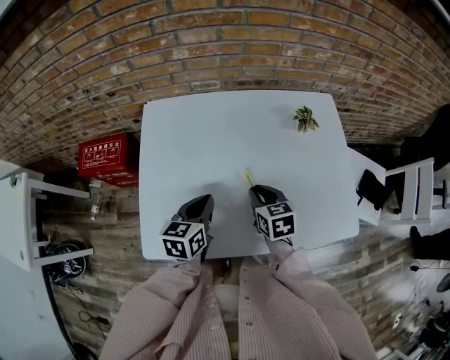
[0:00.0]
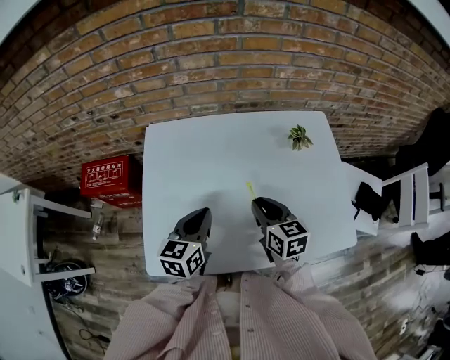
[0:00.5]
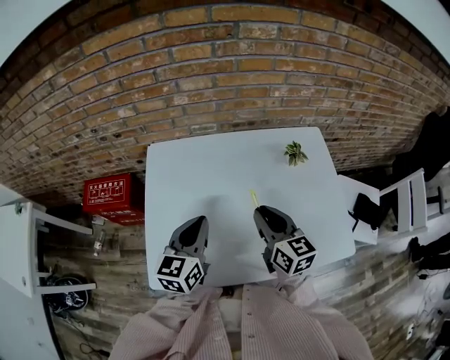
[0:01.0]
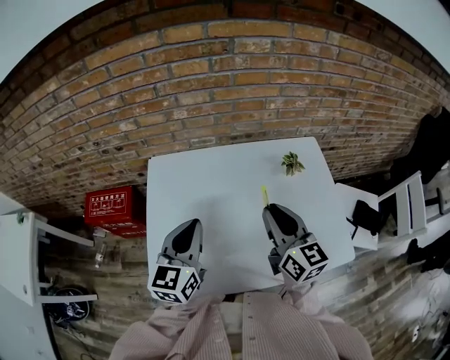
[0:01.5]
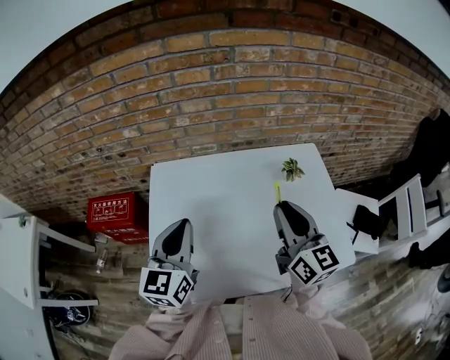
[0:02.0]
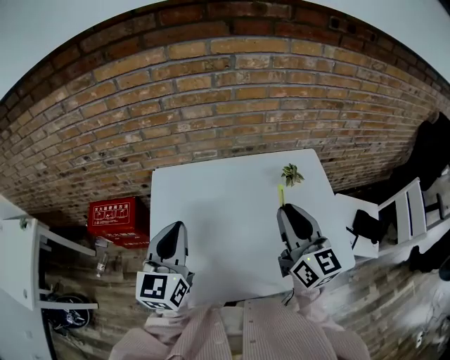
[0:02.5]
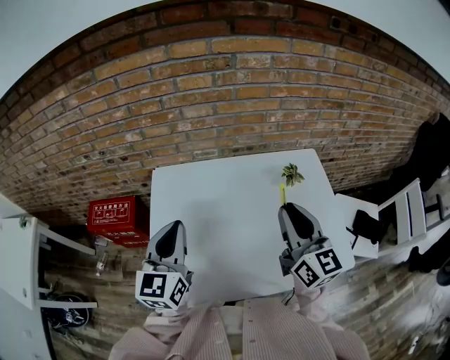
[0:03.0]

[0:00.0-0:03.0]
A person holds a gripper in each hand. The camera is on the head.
0:00.0 to 0:01.5: The two grippers go some 20 cm upward. The left gripper changes its angle by approximately 30 degrees, while the right gripper angles its fingers upward, by some 40 degrees.
0:01.5 to 0:03.0: The right gripper is displaced upward by approximately 5 cm. Meanwhile the left gripper changes place by some 5 cm.

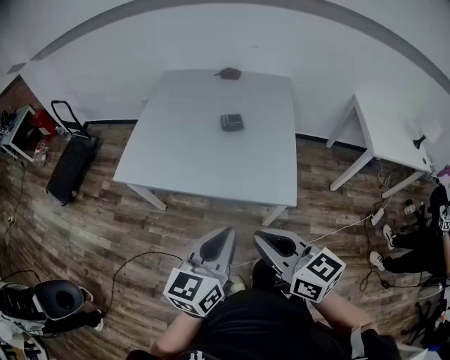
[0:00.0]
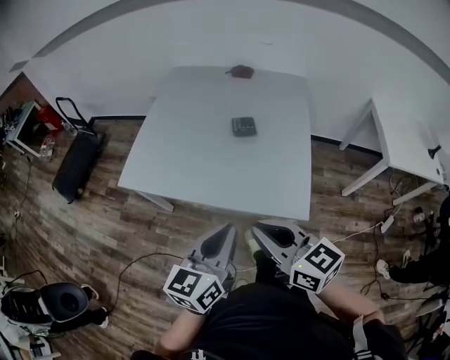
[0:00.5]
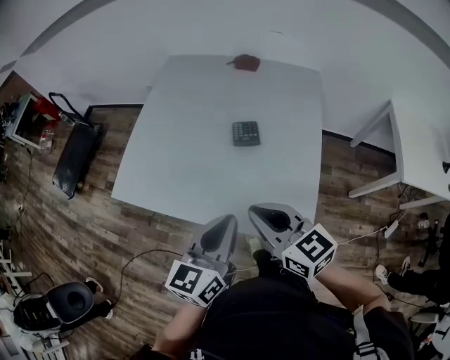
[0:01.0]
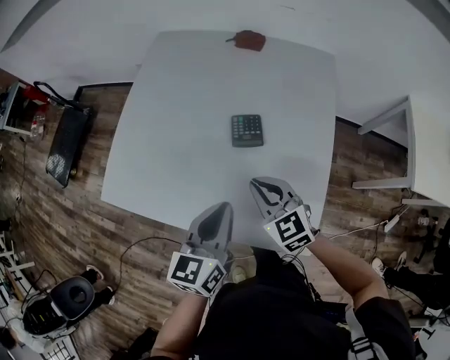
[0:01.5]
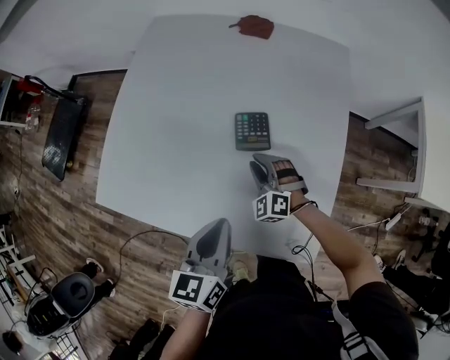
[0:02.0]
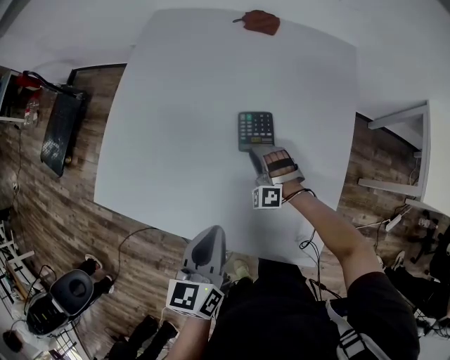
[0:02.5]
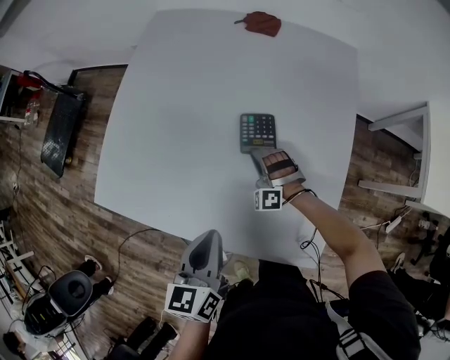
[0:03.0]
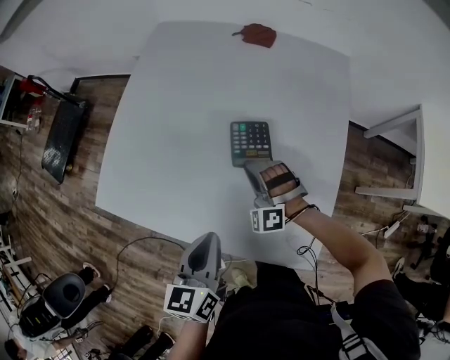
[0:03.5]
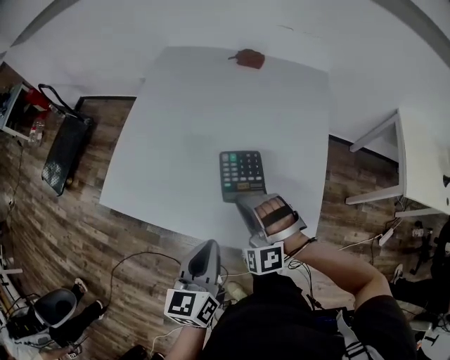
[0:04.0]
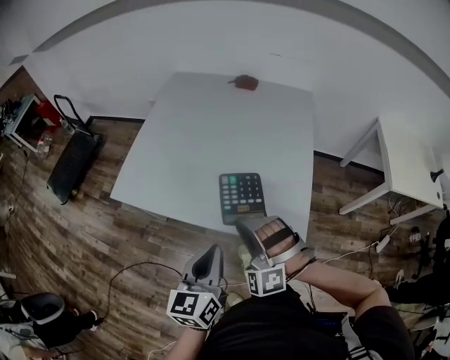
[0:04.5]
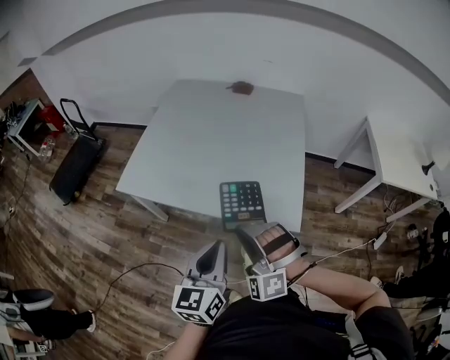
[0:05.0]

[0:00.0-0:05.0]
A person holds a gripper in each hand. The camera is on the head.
0:00.0 to 0:02.5: The right gripper shifts some 60 cm forward and downward, twists some 90 degrees counterclockwise, seen from behind, and opens up; the left gripper travels forward and downward by approximately 35 cm, and turns by some 30 degrees.
0:02.5 to 0:05.0: The right gripper shifts some 50 cm backward and upward. Meanwhile the left gripper travels backward by about 25 cm, and swivels roughly 20 degrees.

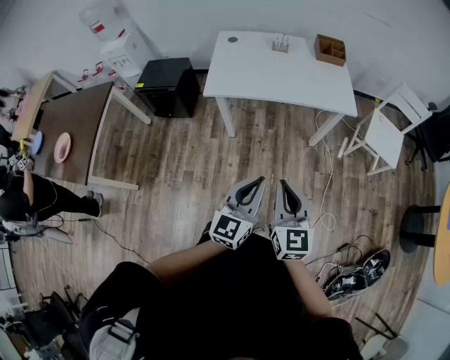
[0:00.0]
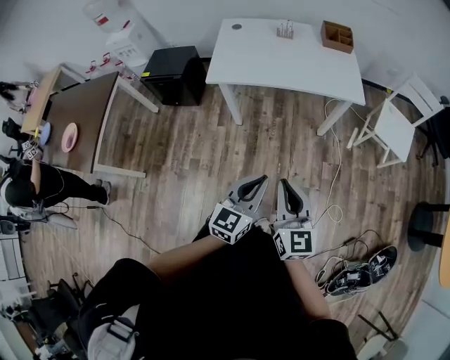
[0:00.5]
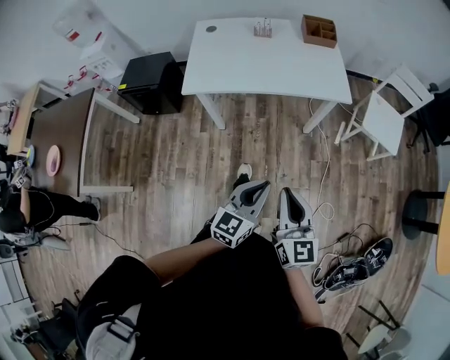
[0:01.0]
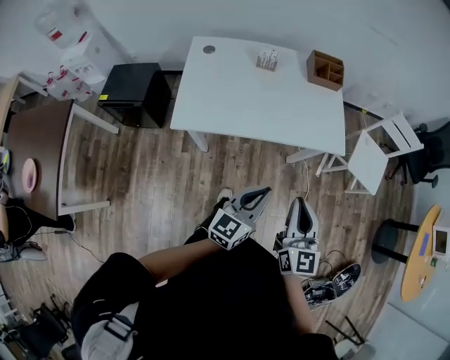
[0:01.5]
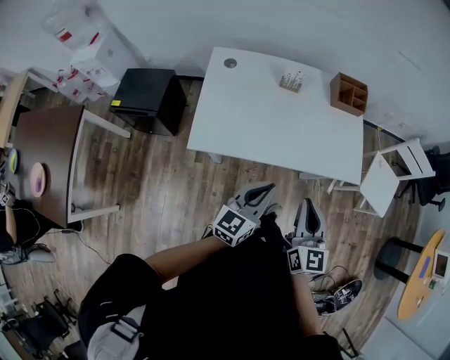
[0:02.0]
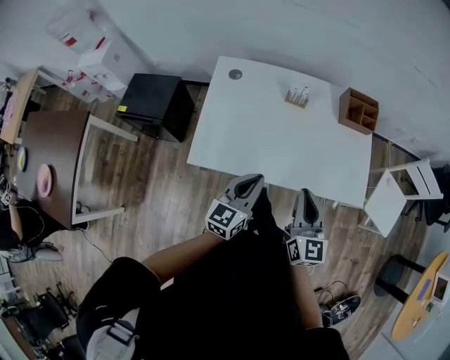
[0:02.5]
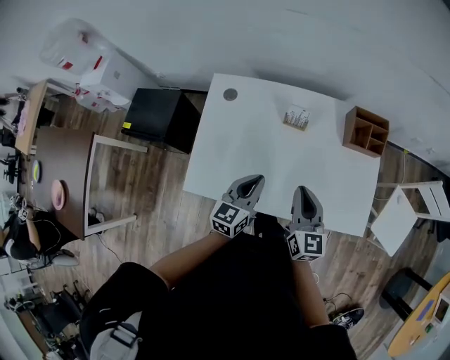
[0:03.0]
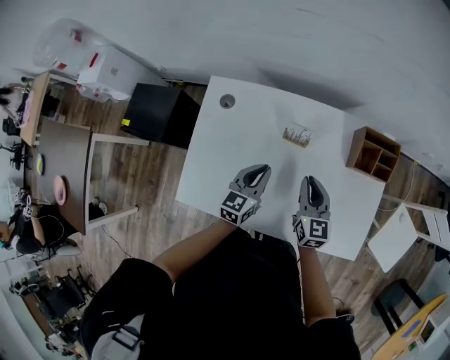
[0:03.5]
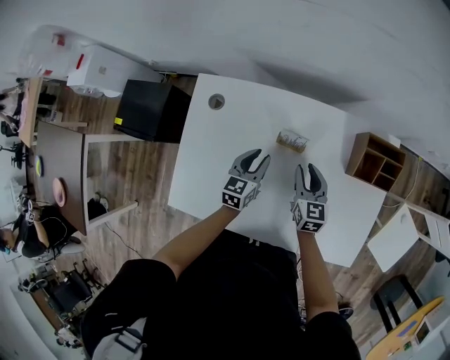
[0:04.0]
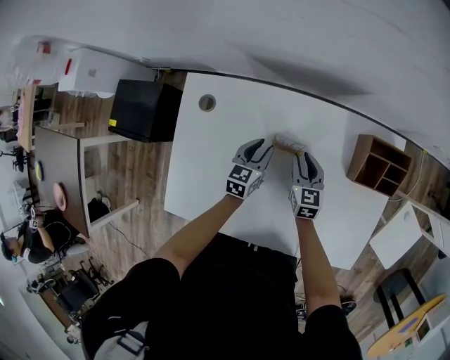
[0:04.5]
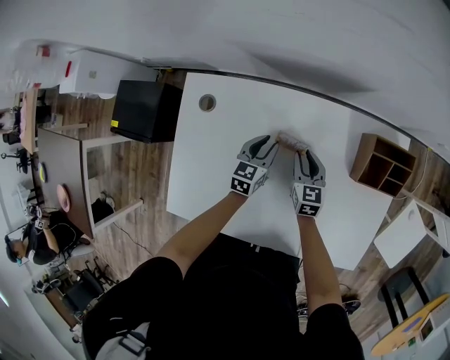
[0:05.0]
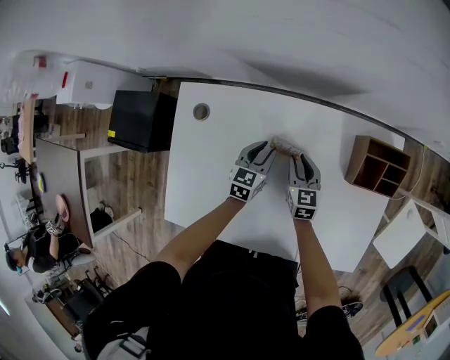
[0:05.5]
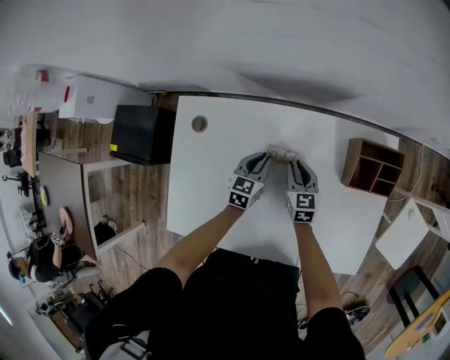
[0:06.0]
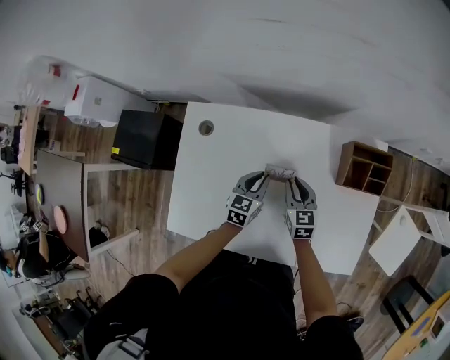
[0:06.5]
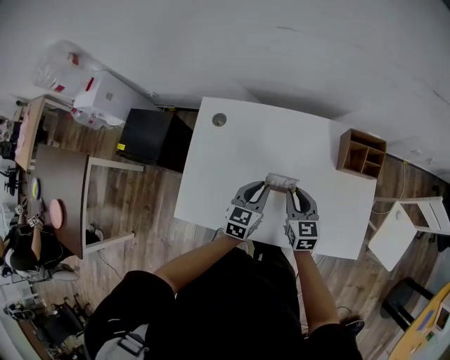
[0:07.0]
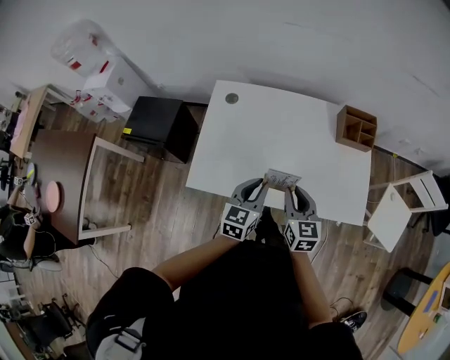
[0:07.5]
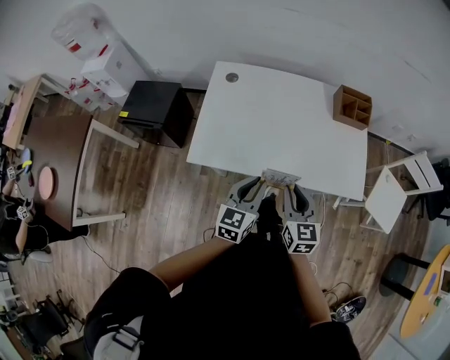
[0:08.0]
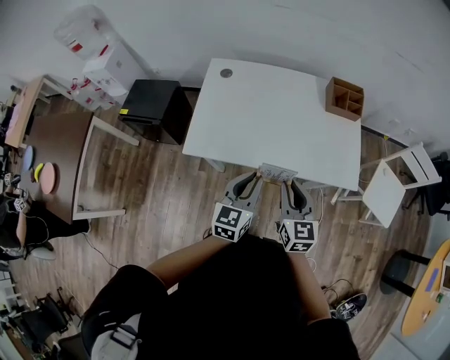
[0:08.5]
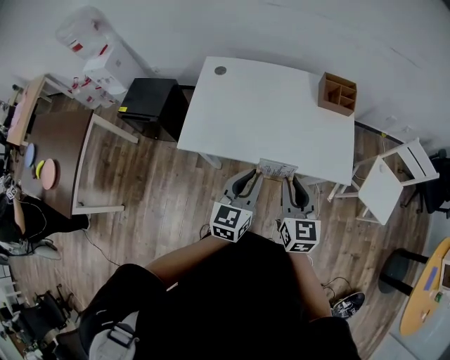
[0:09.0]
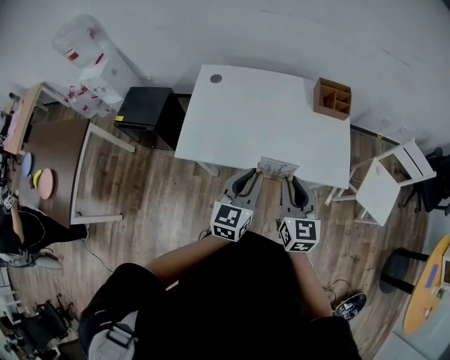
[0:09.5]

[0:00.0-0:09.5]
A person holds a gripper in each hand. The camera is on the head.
0:00.0 to 0:02.0: The grippers both shift forward by roughly 40 cm.
0:02.0 to 0:04.0: The two grippers travel together, forward, approximately 50 cm. Both grippers move downward, approximately 25 cm. The left gripper turns by approximately 30 degrees, and opens up; the right gripper turns by roughly 20 degrees.
0:04.0 to 0:05.5: The left gripper travels forward and downward by about 10 cm. Meanwhile the right gripper goes approximately 10 cm downward and forward.
0:05.5 to 0:07.5: The grippers both shift backward and upward by approximately 40 cm.
0:07.5 to 0:09.5: The two grippers go roughly 20 cm backward, upward and to the right.

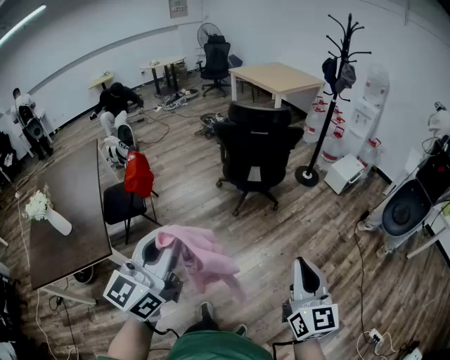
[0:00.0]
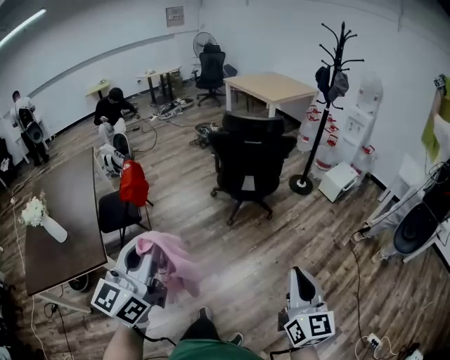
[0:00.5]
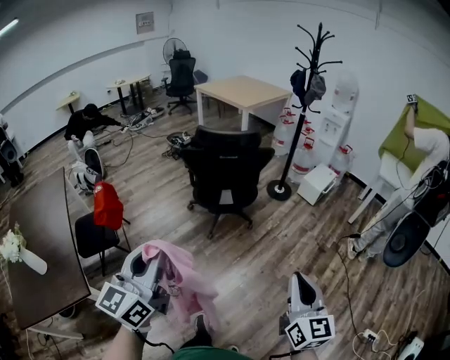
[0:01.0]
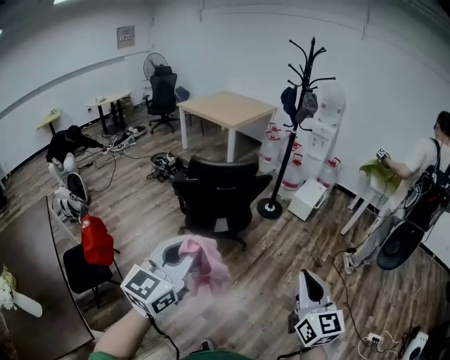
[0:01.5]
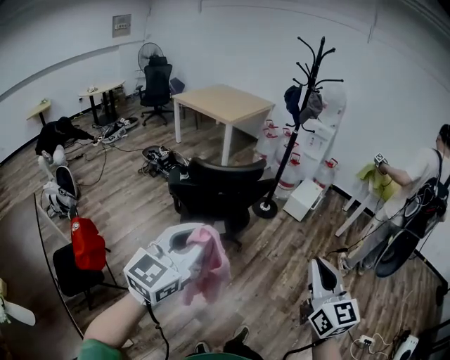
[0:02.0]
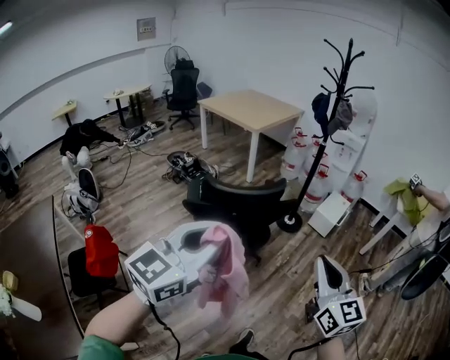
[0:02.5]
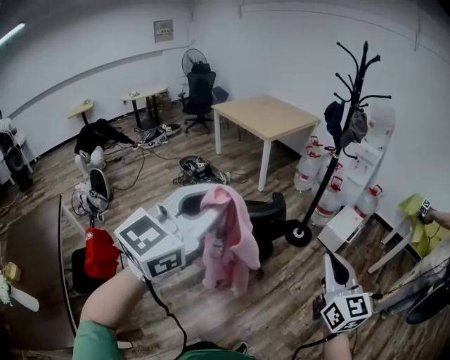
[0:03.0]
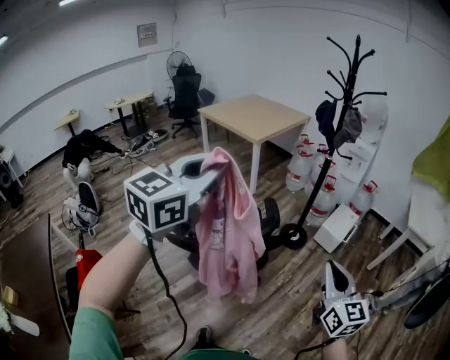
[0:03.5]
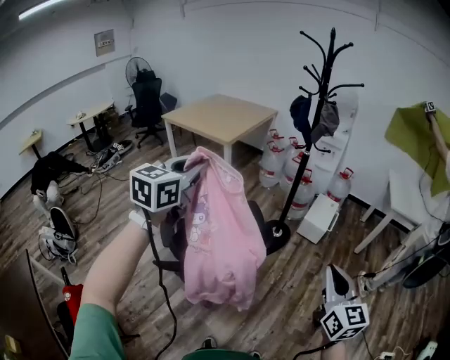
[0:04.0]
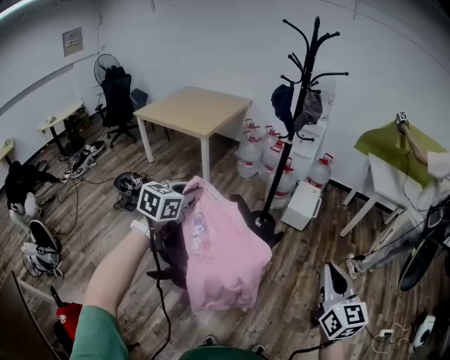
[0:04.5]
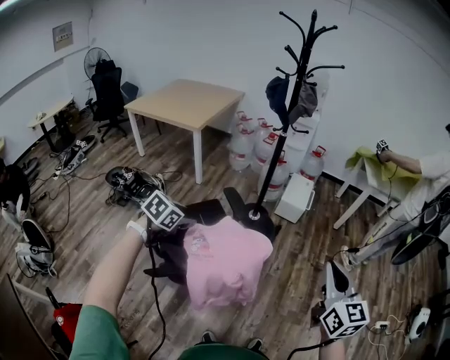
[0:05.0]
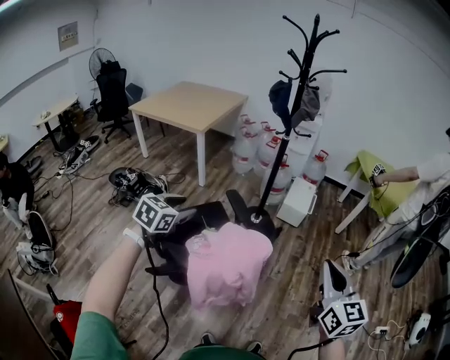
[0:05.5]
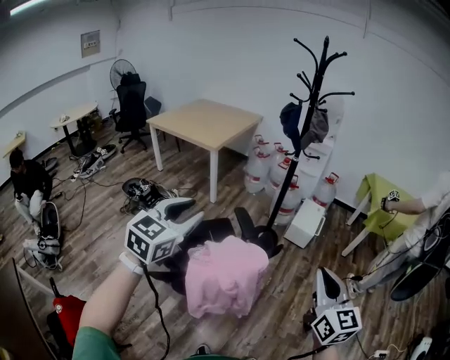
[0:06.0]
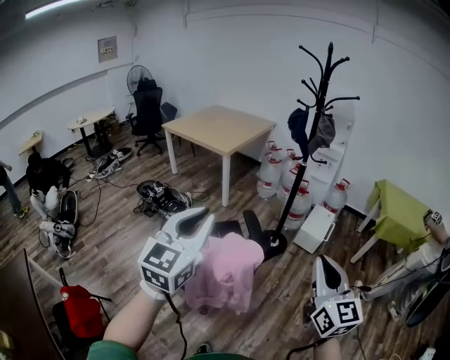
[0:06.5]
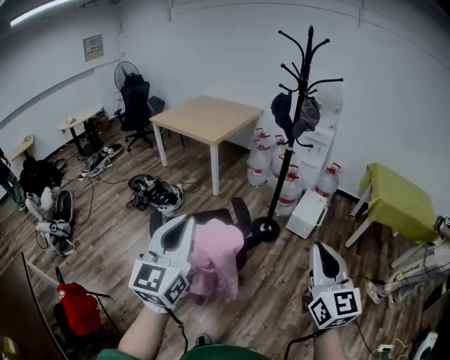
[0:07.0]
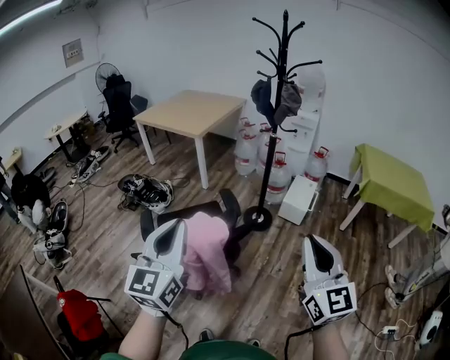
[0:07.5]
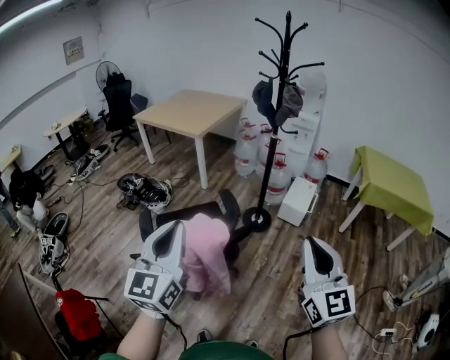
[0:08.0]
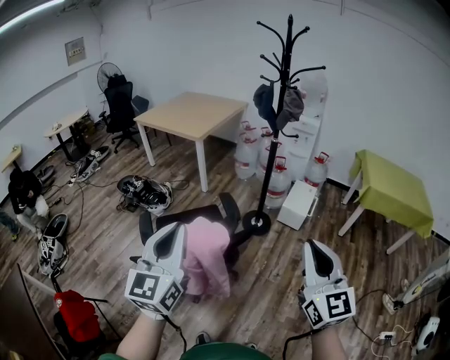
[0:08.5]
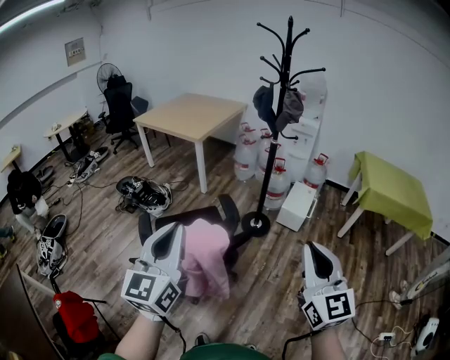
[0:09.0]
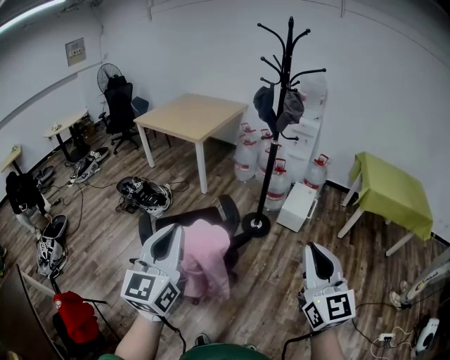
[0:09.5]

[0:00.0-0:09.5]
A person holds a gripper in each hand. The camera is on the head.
0:00.0 to 0:02.0: The right gripper ends up some 30 cm from where it was; the left gripper changes place by approximately 40 cm, and swivels approximately 30 degrees.
0:02.0 to 0:04.0: The two grippers go roughly 40 cm forward.
0:04.0 to 0:05.5: The left gripper is displaced downward by some 25 cm, turns by some 30 degrees, and opens up.
0:05.5 to 0:07.5: The right gripper is displaced upward and to the right by about 10 cm. The left gripper shifts some 30 cm backward, upward and to the right, points its fingers approximately 40 degrees further upward, and closes up.
0:07.5 to 0:09.5: The grippers stay close to where they were, moving slightly.
